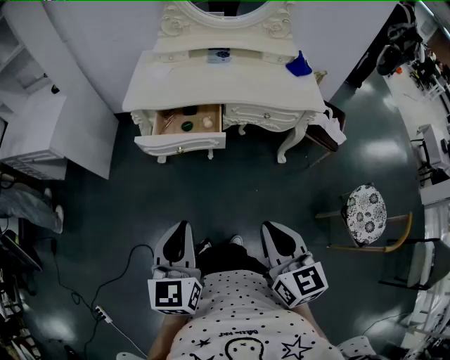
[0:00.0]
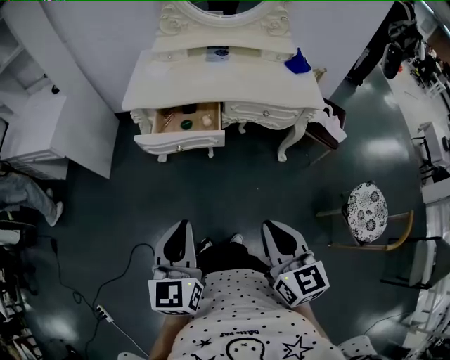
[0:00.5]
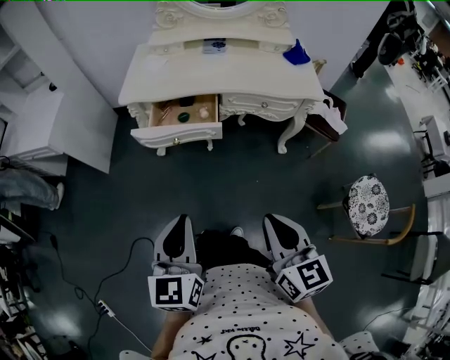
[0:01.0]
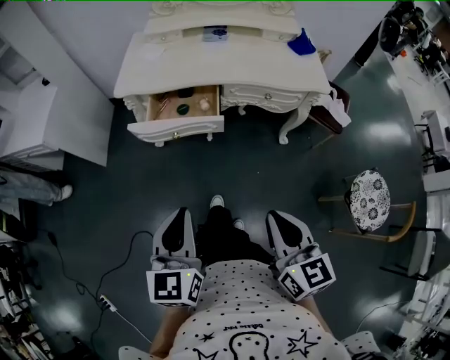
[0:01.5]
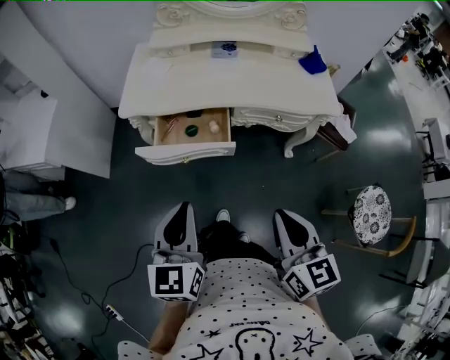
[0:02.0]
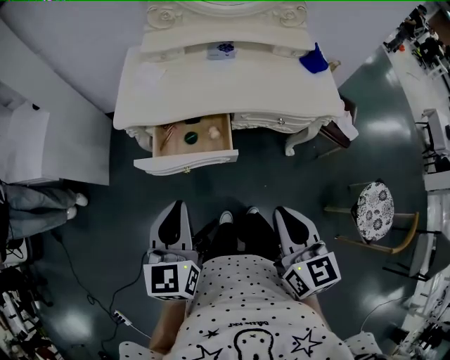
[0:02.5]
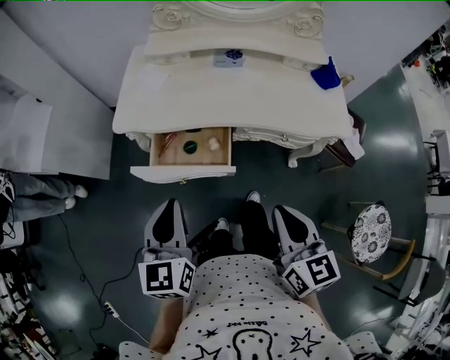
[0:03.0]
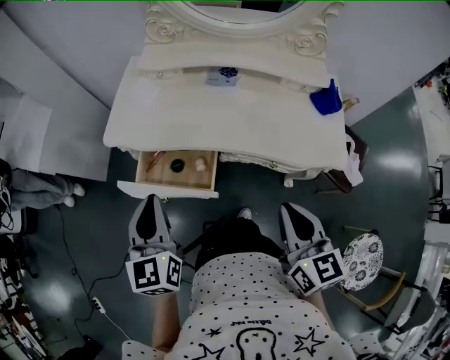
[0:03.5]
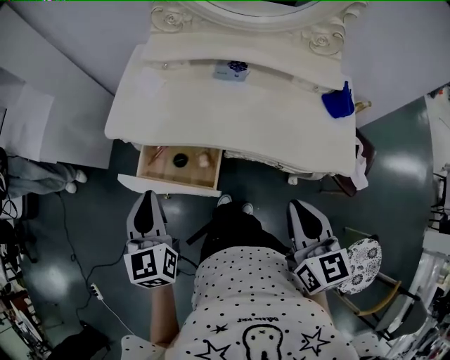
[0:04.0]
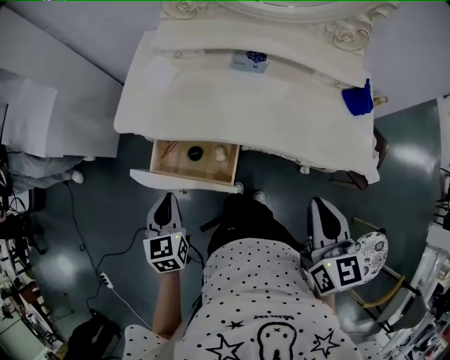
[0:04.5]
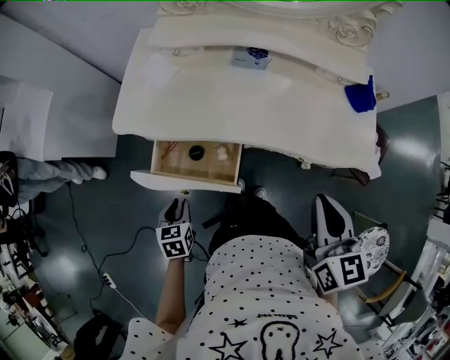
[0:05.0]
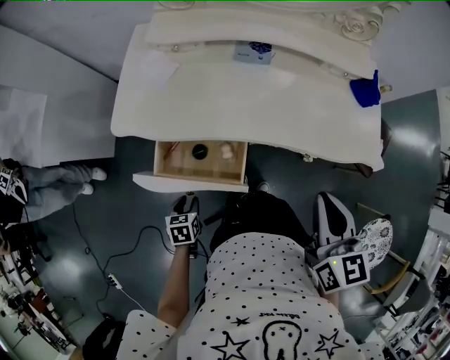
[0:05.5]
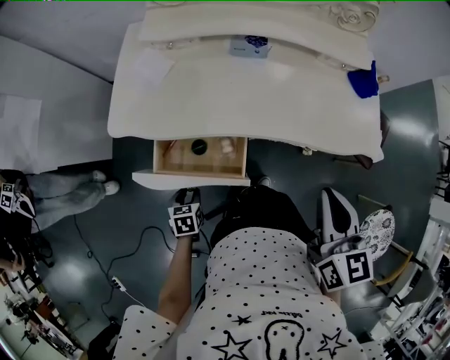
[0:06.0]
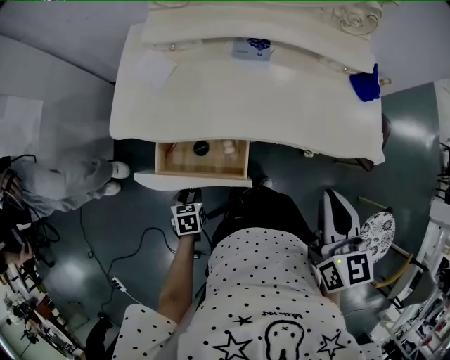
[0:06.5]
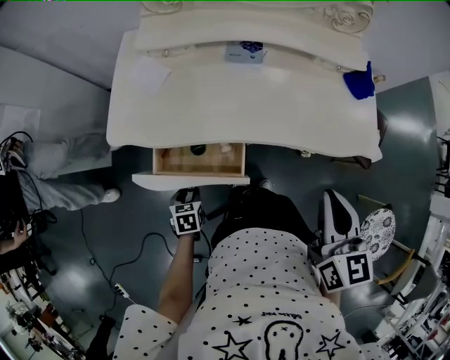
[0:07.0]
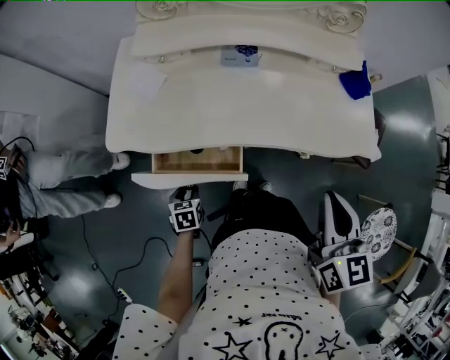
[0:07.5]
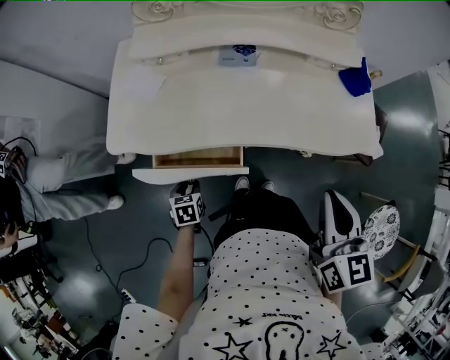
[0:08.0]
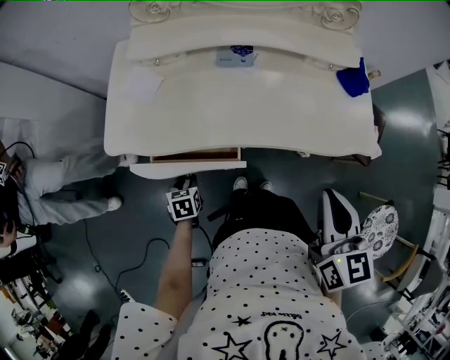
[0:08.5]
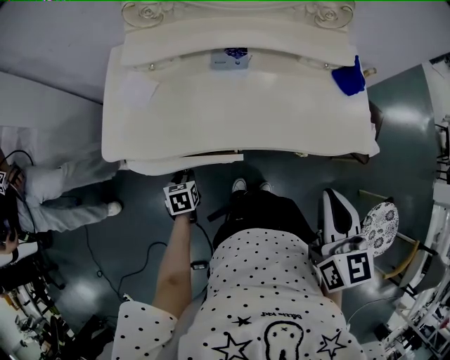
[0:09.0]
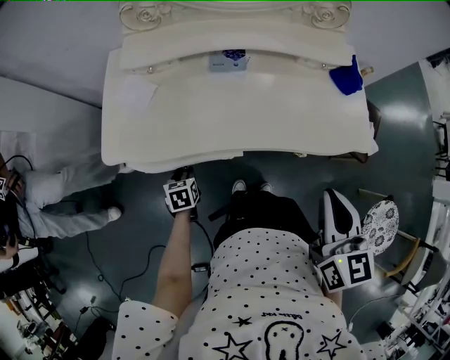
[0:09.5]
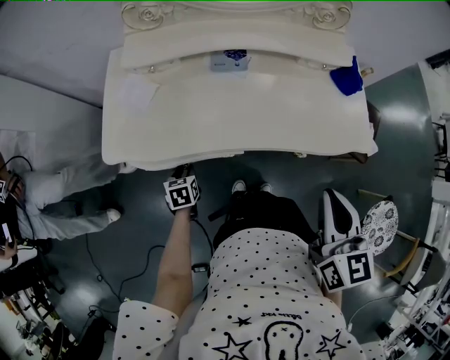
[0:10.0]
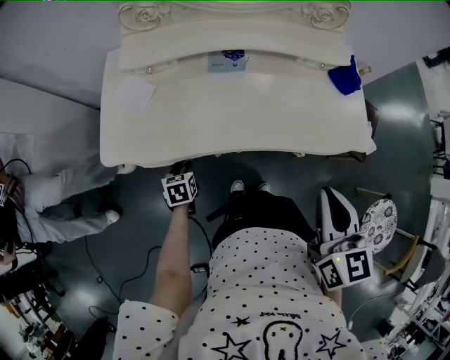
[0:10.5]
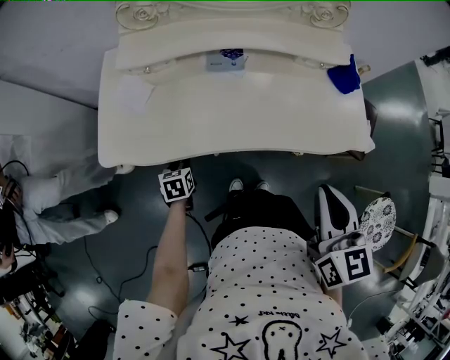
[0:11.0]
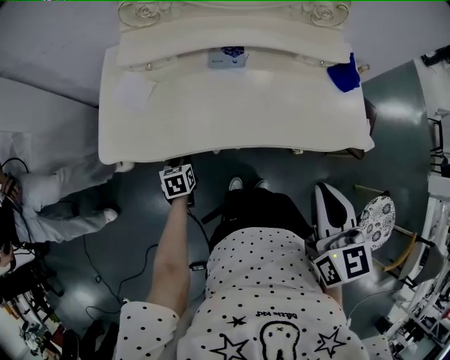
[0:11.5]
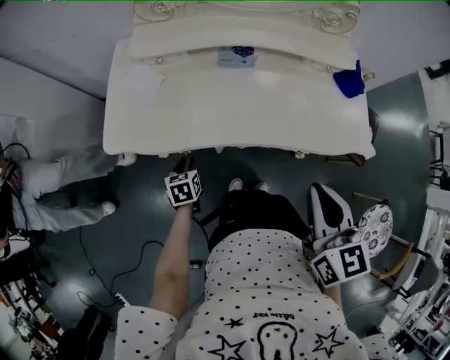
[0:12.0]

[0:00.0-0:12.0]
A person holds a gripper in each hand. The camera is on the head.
0:00.0 to 0:02.0: The two grippers go about 15 cm forward.
0:02.0 to 0:04.0: The left gripper is displaced forward by approximately 20 cm, and turns by about 20 degrees. The right gripper goes approximately 30 cm forward and to the right.
0:04.0 to 0:06.0: The left gripper goes about 30 cm downward, angles its fingers downward, by roughly 40 degrees, and opens. Meanwhile the right gripper changes place by some 5 cm.
0:06.0 to 0:08.0: The left gripper goes roughly 5 cm forward.
0:08.0 to 0:10.0: The left gripper moves forward, roughly 10 cm.
0:10.0 to 0:12.0: The grippers stay close to where they were, moving slightly.

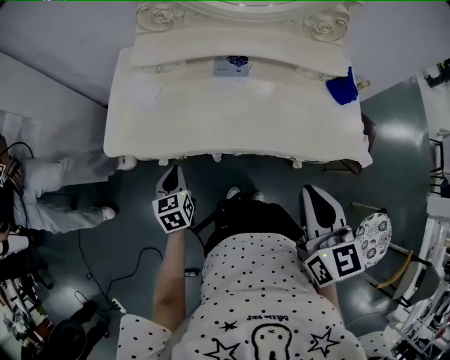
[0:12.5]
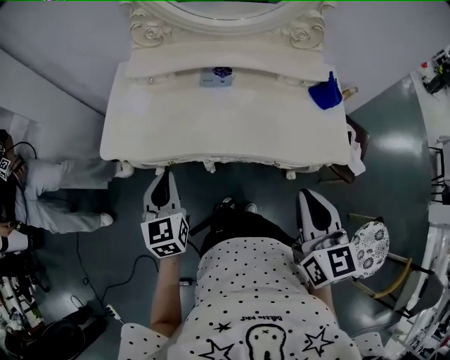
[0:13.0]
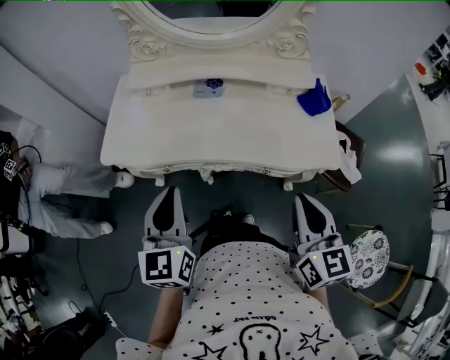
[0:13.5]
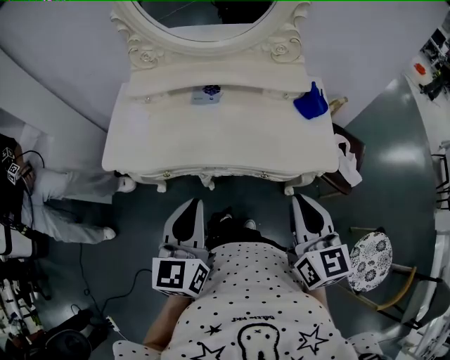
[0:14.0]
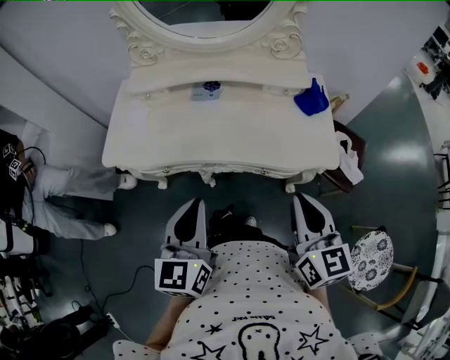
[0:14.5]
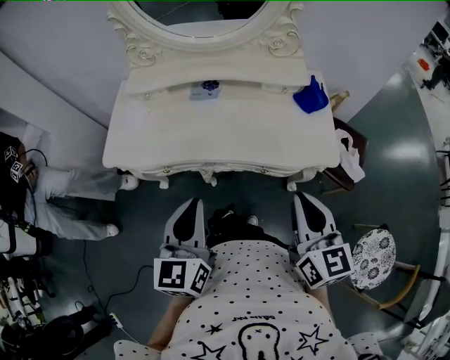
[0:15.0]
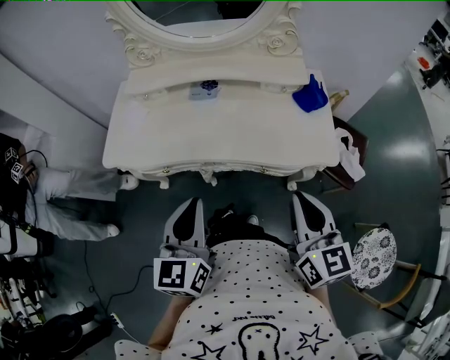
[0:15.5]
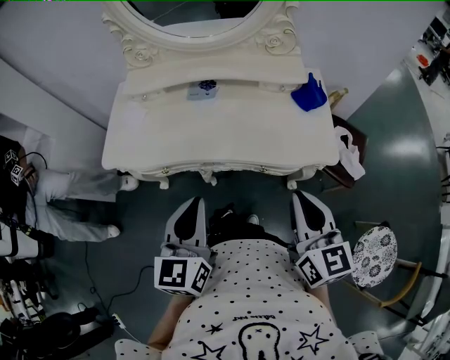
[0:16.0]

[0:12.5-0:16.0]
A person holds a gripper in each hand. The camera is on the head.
0:12.5 to 0:14.5: The right gripper travels to the right and backward by about 15 cm; the left gripper moves upward, to the right and backward, roughly 35 cm, and rotates approximately 30 degrees.
0:14.5 to 0:16.0: Neither gripper changes place.

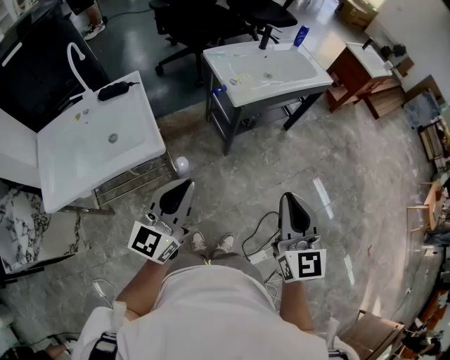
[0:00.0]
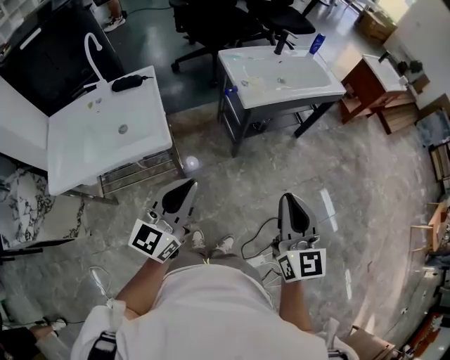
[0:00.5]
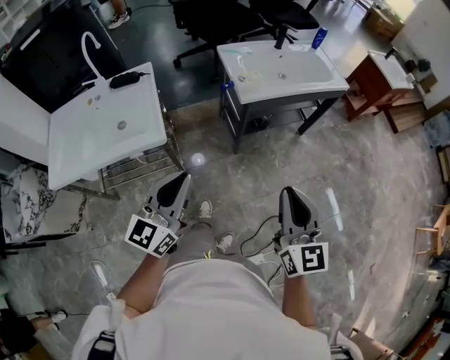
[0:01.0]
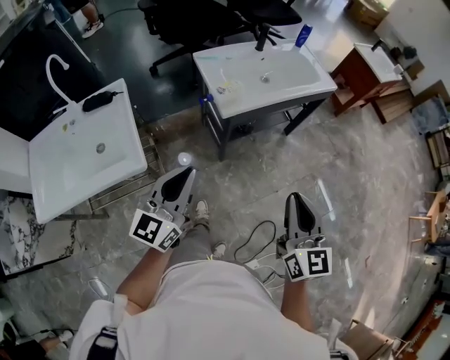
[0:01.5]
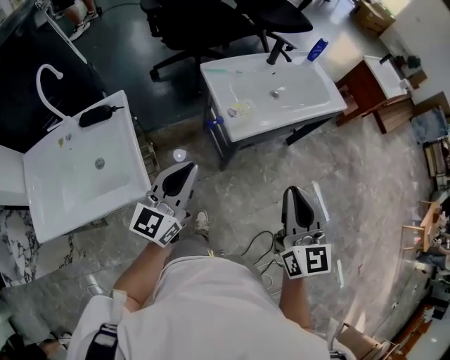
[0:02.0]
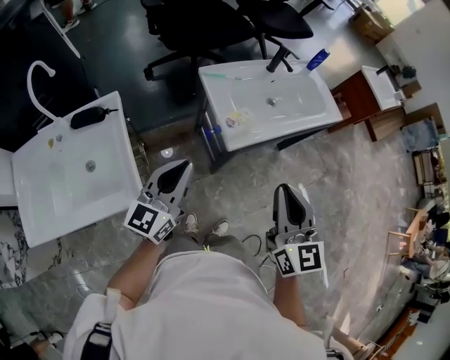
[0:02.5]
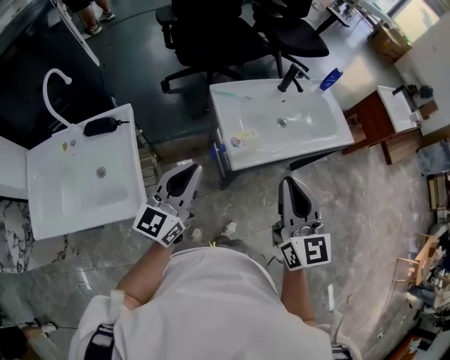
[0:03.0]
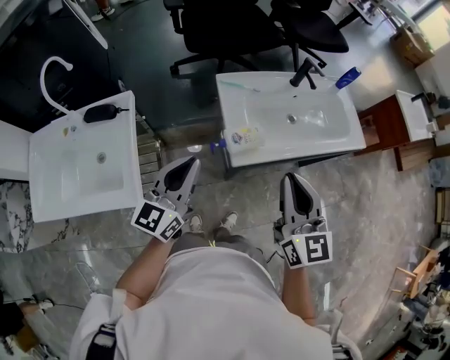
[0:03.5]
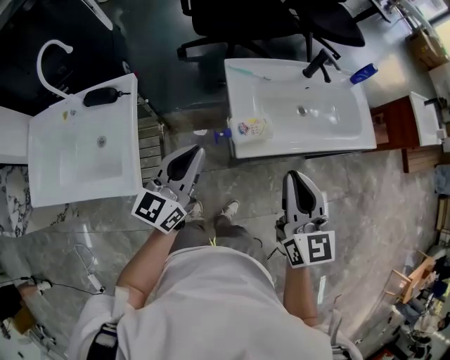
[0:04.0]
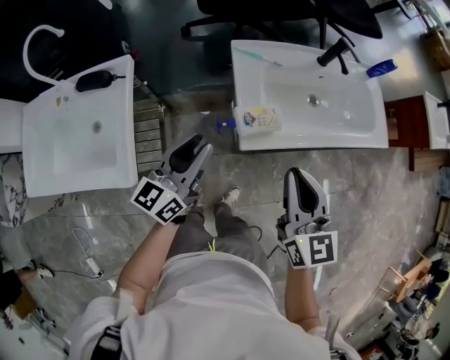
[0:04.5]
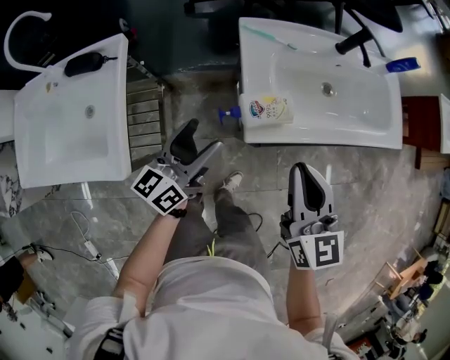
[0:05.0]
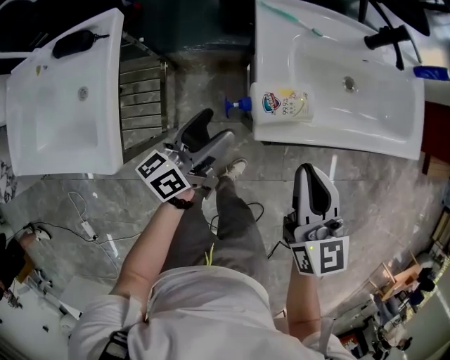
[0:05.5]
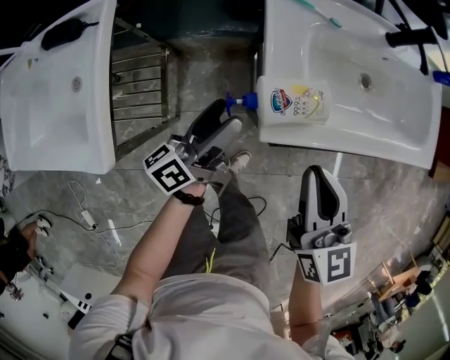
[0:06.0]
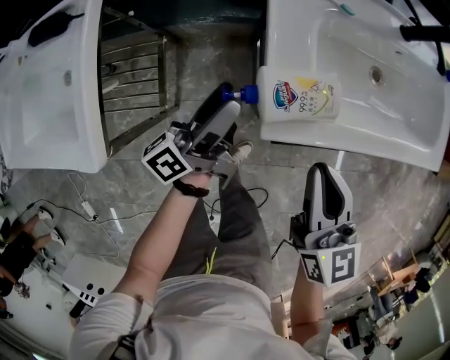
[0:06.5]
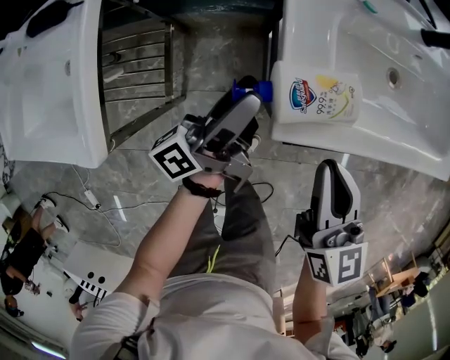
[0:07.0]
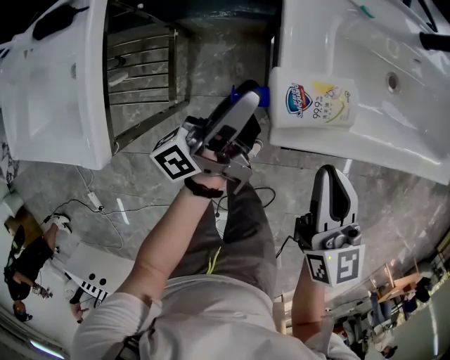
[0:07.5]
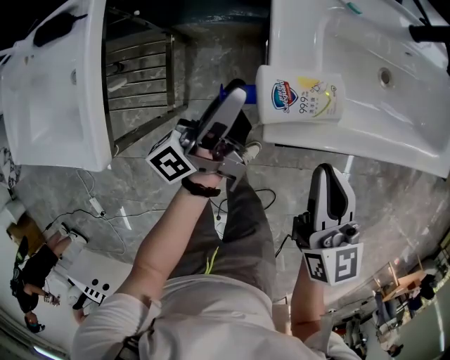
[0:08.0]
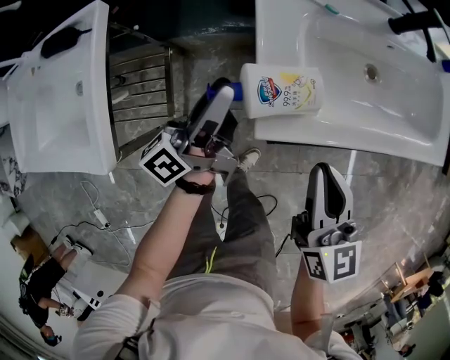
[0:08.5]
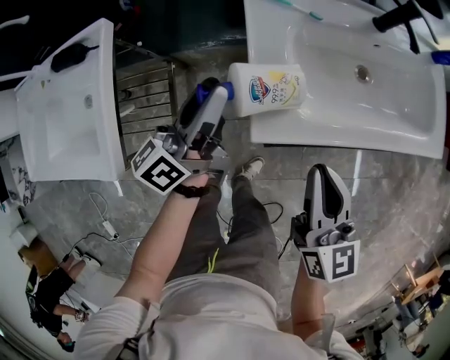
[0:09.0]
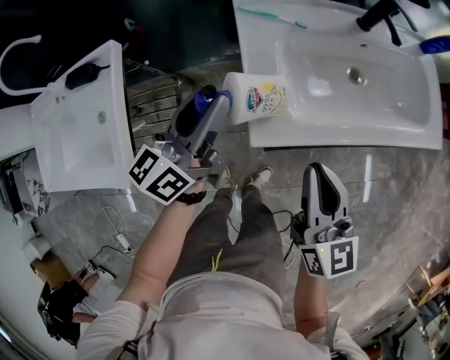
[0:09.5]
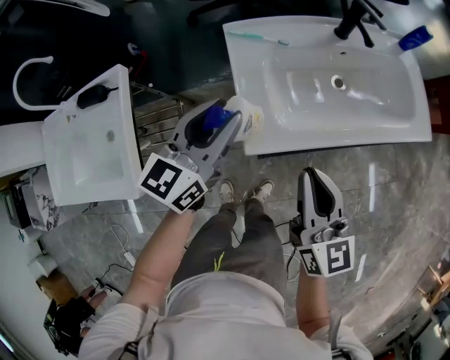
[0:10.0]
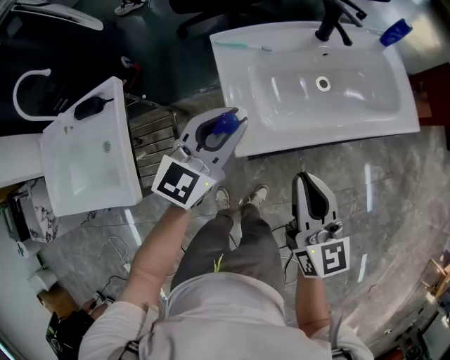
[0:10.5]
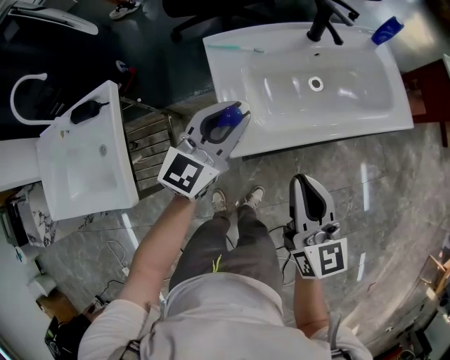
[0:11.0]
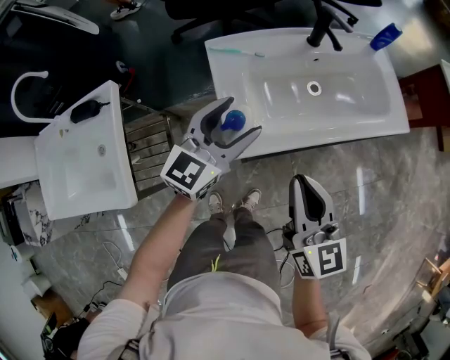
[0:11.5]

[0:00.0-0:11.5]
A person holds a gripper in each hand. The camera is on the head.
0:00.0 to 0:02.0: The grippers both shift forward by some 25 cm.
0:02.0 to 0:04.0: Both grippers move forward, some 15 cm.
0:04.0 to 0:06.0: Both grippers travel together downward, about 25 cm. The left gripper rolls counterclockwise, seen from behind, by some 50 degrees, and opens its fingers.
0:06.0 to 0:07.5: The right gripper travels downward by about 5 cm. The left gripper closes up.
0:07.5 to 0:09.5: The two grippers go some 10 cm upward. The left gripper rolls clockwise, seen from behind, by some 40 degrees.
0:09.5 to 0:11.5: The right gripper is displaced upward by roughly 5 cm; the left gripper travels to the right by some 10 cm, turns by roughly 40 degrees, and opens up.
